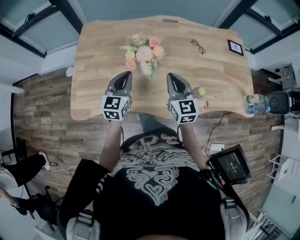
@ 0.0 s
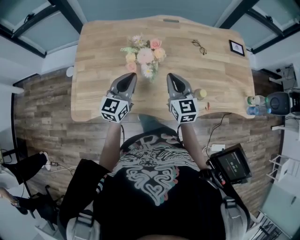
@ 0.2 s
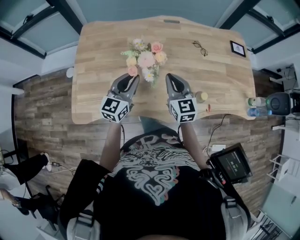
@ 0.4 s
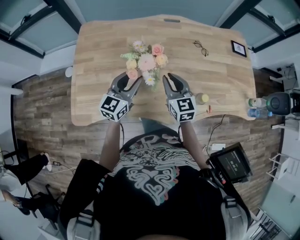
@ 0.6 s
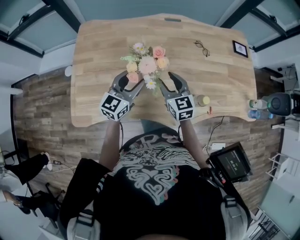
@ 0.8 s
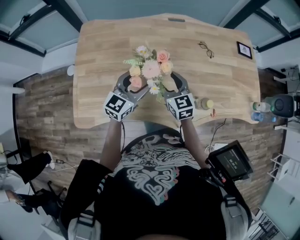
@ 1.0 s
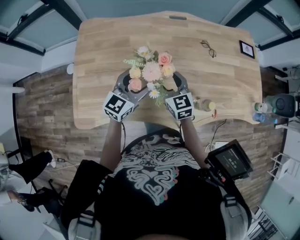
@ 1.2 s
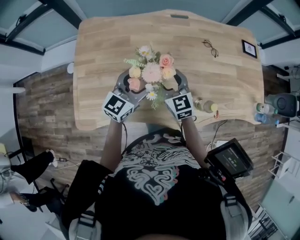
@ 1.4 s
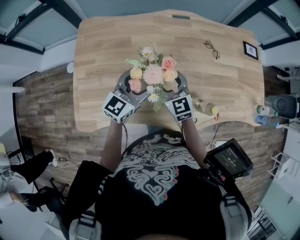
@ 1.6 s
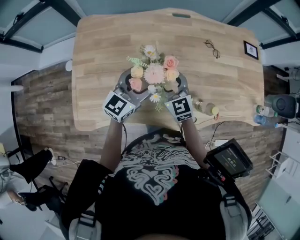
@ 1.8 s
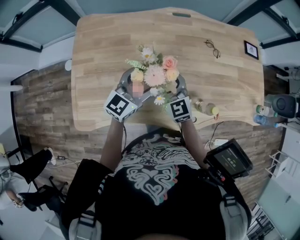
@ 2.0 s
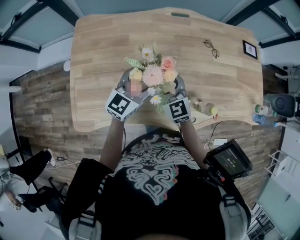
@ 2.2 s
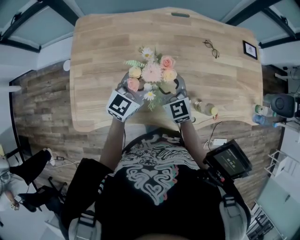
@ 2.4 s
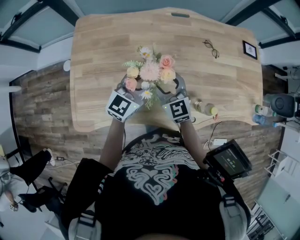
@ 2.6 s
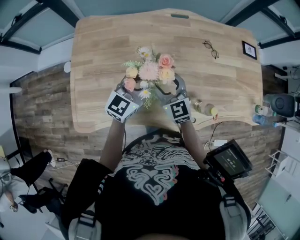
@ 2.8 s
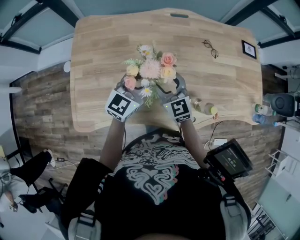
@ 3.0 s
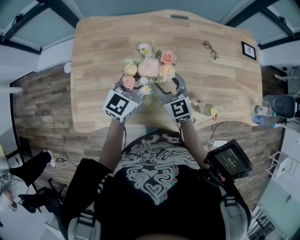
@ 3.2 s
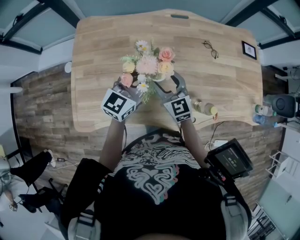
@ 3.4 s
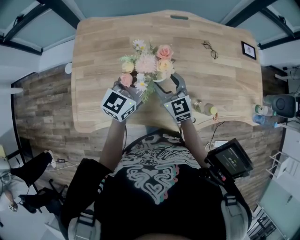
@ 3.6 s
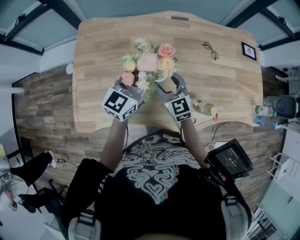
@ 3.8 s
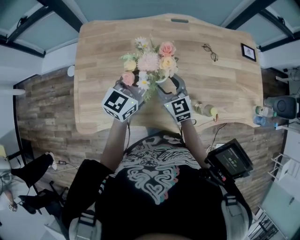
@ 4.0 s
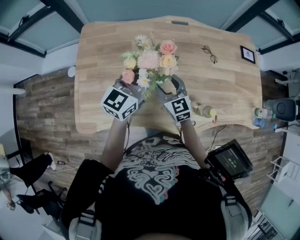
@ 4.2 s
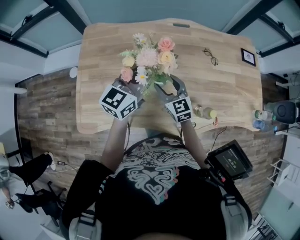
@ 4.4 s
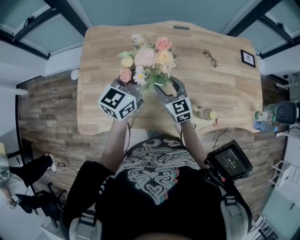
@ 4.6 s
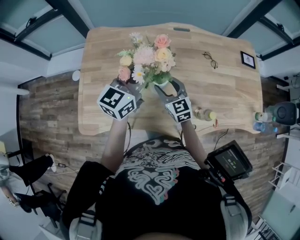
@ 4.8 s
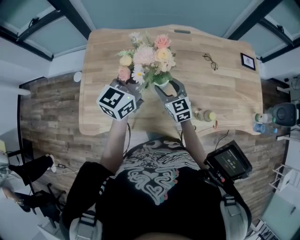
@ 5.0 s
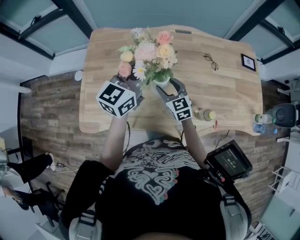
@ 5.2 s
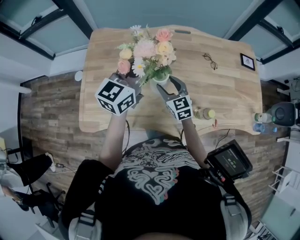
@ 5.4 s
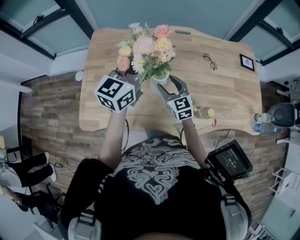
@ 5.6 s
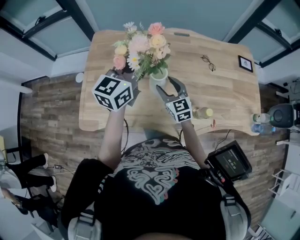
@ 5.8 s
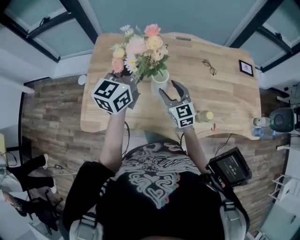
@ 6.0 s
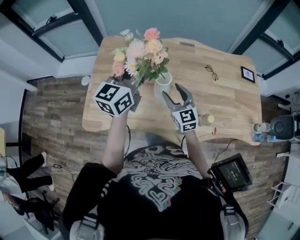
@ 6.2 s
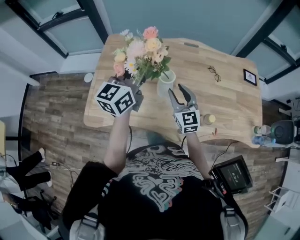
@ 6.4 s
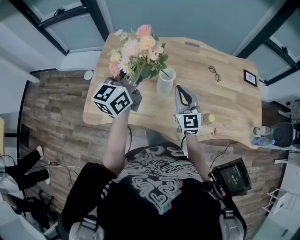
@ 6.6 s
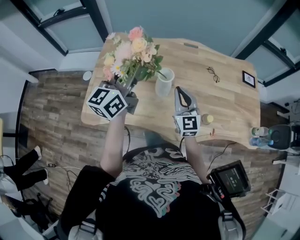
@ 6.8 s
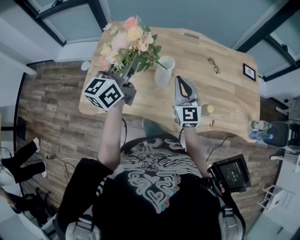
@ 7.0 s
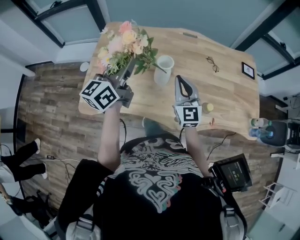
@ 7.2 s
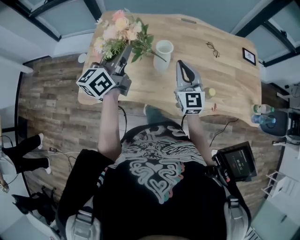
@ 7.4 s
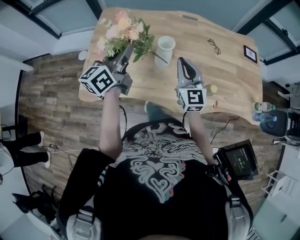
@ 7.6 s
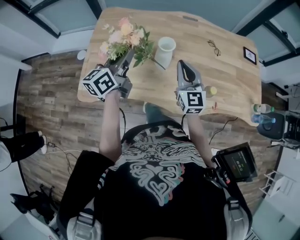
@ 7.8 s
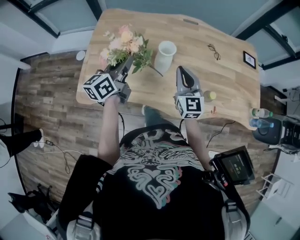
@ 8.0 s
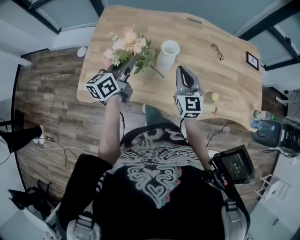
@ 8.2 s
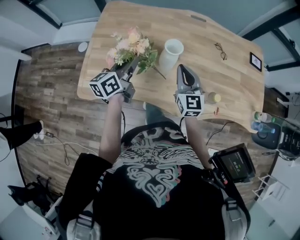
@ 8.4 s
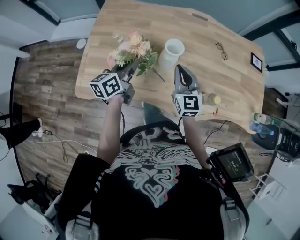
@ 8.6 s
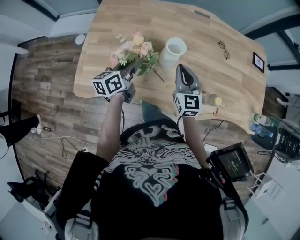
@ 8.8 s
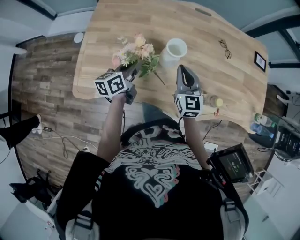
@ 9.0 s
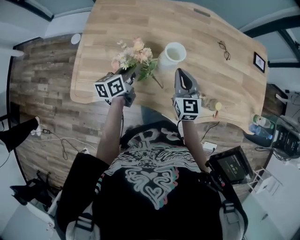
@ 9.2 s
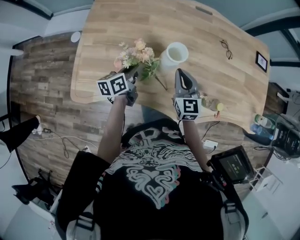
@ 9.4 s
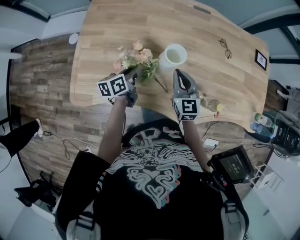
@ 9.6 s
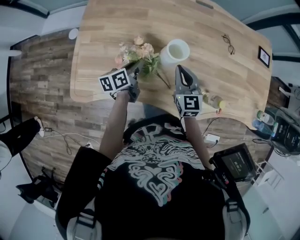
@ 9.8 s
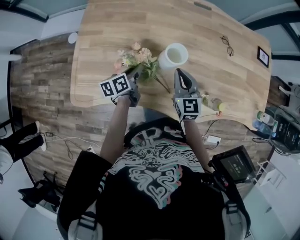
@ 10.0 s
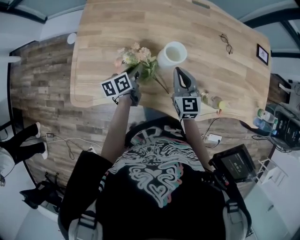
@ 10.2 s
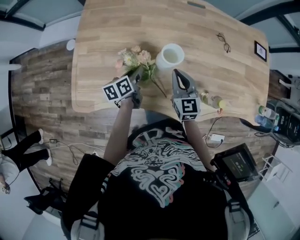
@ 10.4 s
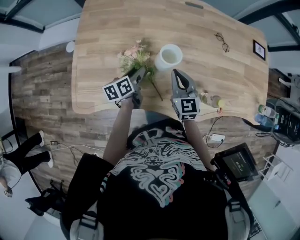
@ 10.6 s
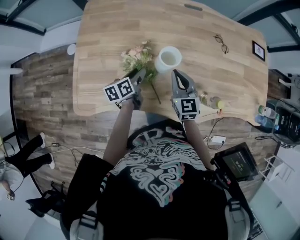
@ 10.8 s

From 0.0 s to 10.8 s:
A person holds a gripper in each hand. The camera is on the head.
From 0.0 s to 1.6 s: The right gripper goes some 15 cm forward, to the left and downward, and opens up. The left gripper is displaced forward by approximately 10 cm, swivels some 30 degrees, and opens up.
From 1.6 s to 3.0 s: The left gripper closes.
From 3.0 s to 4.6 s: The left gripper goes about 10 cm upward.
From 4.6 s to 6.2 s: The left gripper heads upward, covering about 10 cm. The right gripper moves backward and upward, about 10 cm.
From 6.2 s to 7.8 s: The right gripper goes roughly 5 cm backward, and closes; the left gripper goes approximately 15 cm downward, to the left and backward, and changes its angle by some 20 degrees.
From 7.8 s to 9.2 s: The left gripper heads downward, covering some 20 cm, and rotates approximately 30 degrees. Meanwhile the right gripper goes approximately 15 cm downward and forward.
From 9.2 s to 10.8 s: The left gripper moves downward, approximately 5 cm, and opens up.

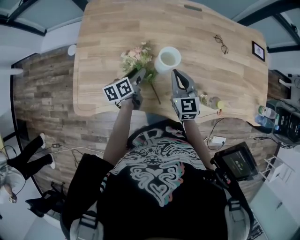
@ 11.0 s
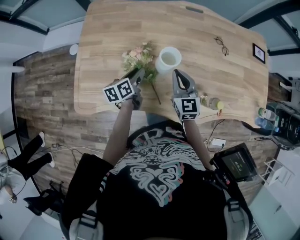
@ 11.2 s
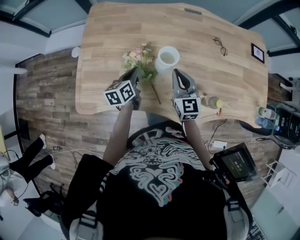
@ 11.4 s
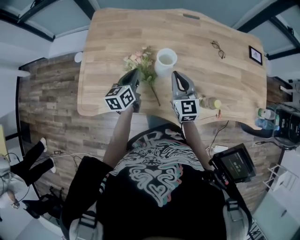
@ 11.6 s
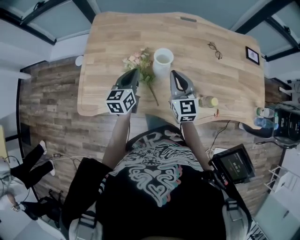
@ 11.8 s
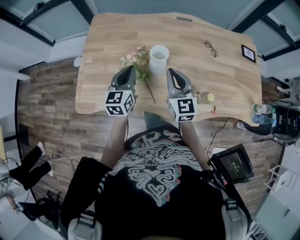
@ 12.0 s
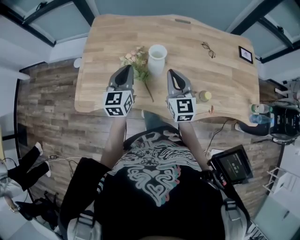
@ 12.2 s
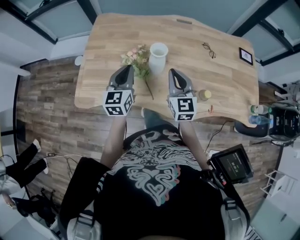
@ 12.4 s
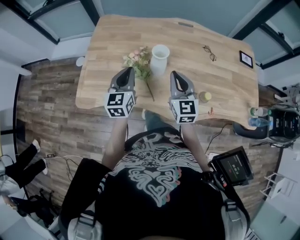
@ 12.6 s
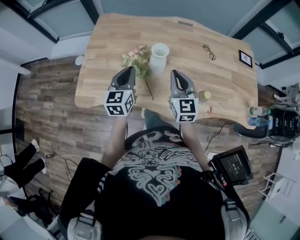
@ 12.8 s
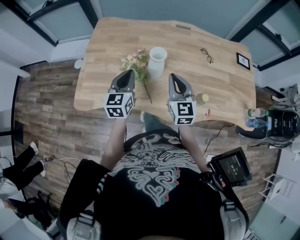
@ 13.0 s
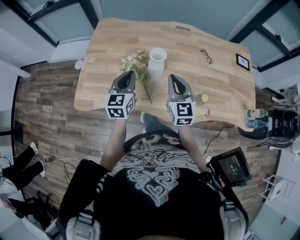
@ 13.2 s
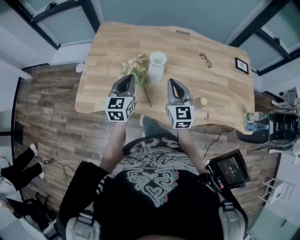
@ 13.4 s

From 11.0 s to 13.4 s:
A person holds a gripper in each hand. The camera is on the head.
From 11.0 s to 12.2 s: The two grippers go some 15 cm upward and backward. The left gripper twists some 50 degrees clockwise, seen from behind, and closes.
From 12.2 s to 13.4 s: The grippers make only small movements.

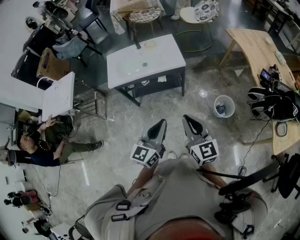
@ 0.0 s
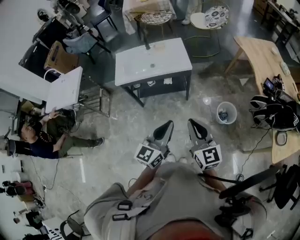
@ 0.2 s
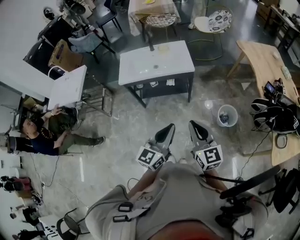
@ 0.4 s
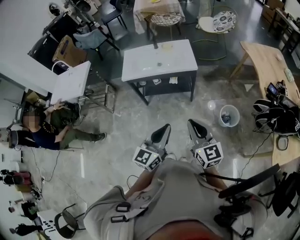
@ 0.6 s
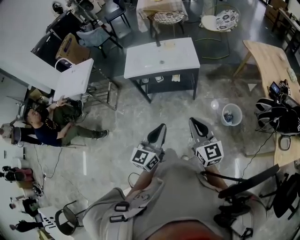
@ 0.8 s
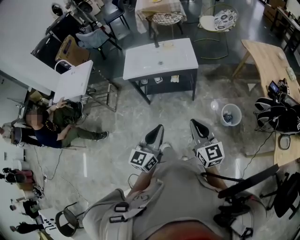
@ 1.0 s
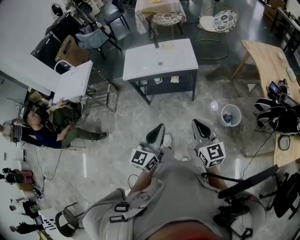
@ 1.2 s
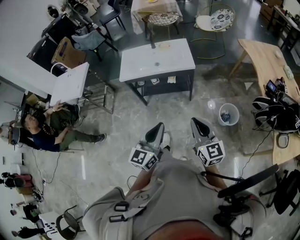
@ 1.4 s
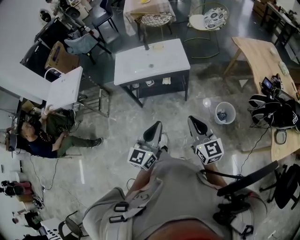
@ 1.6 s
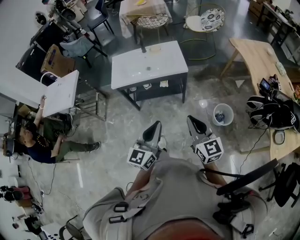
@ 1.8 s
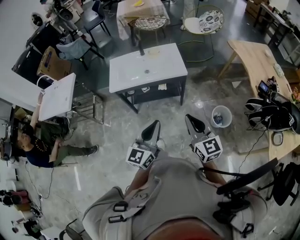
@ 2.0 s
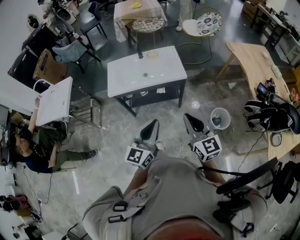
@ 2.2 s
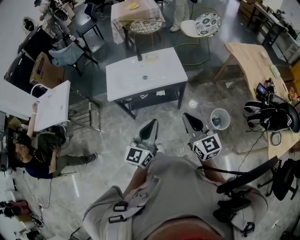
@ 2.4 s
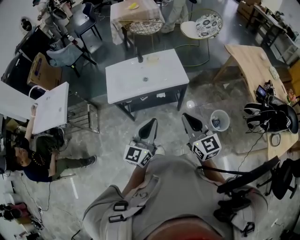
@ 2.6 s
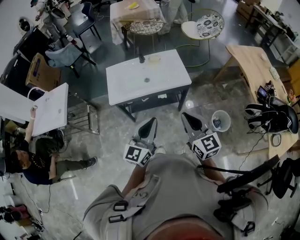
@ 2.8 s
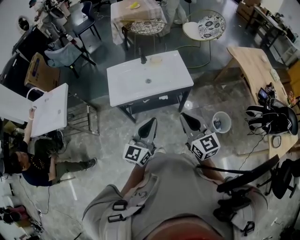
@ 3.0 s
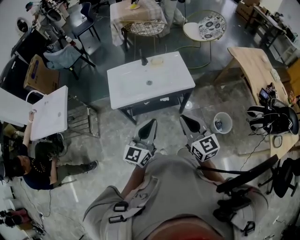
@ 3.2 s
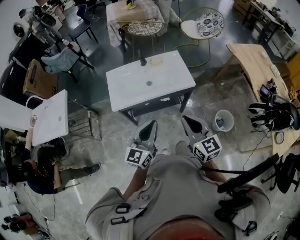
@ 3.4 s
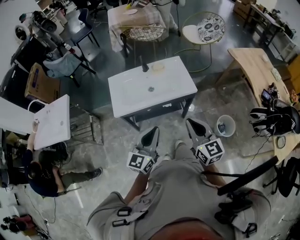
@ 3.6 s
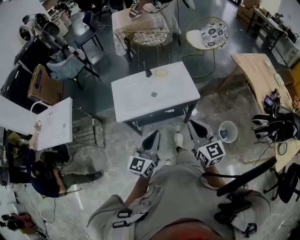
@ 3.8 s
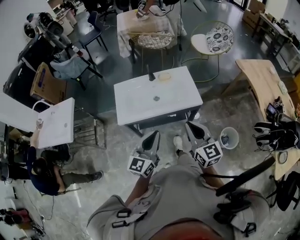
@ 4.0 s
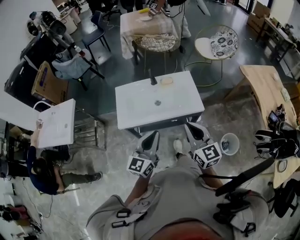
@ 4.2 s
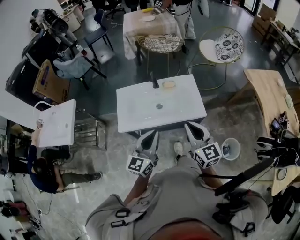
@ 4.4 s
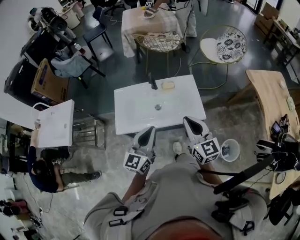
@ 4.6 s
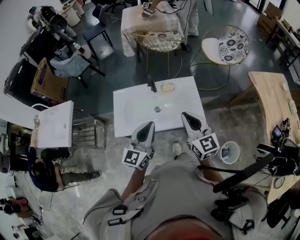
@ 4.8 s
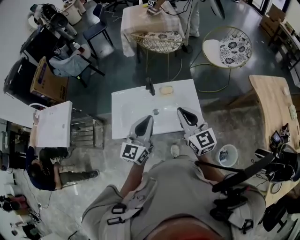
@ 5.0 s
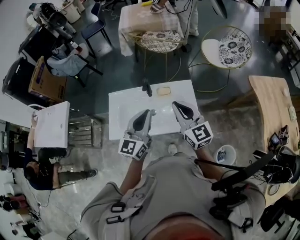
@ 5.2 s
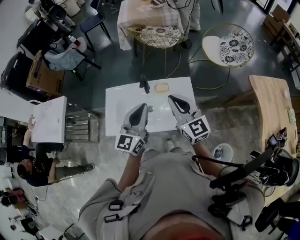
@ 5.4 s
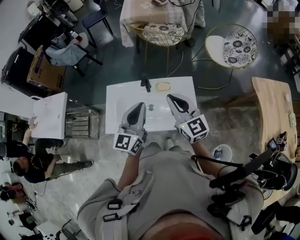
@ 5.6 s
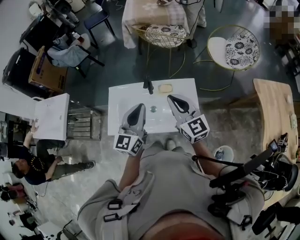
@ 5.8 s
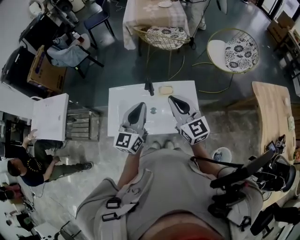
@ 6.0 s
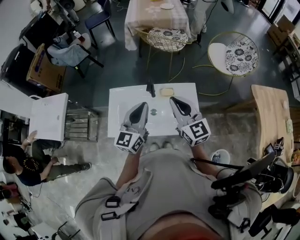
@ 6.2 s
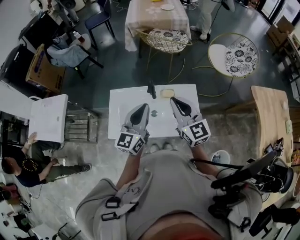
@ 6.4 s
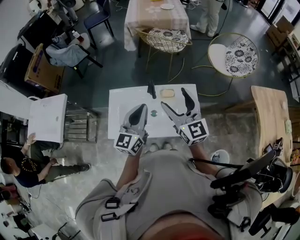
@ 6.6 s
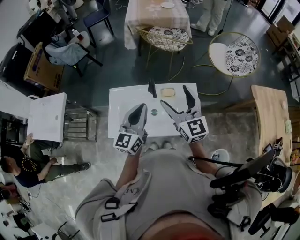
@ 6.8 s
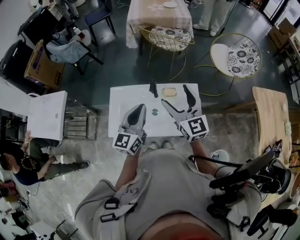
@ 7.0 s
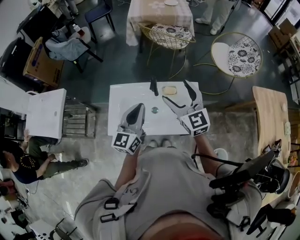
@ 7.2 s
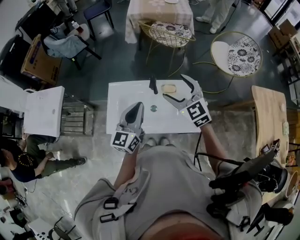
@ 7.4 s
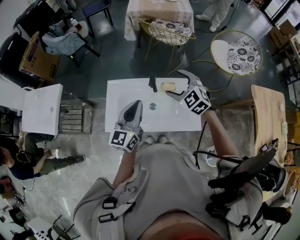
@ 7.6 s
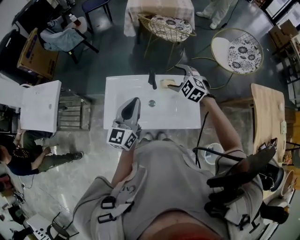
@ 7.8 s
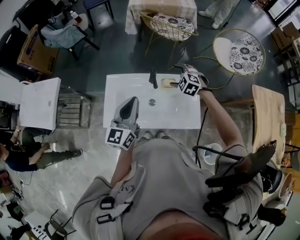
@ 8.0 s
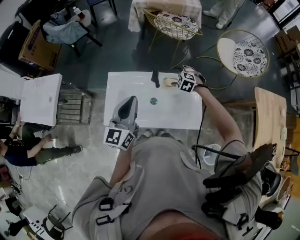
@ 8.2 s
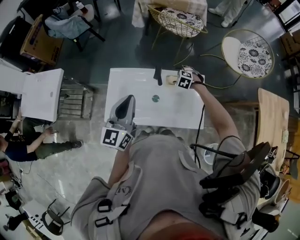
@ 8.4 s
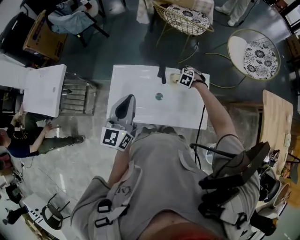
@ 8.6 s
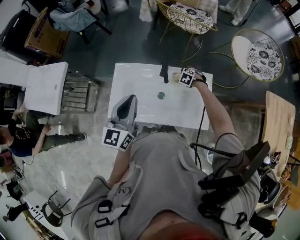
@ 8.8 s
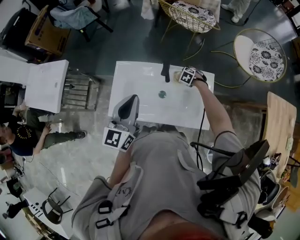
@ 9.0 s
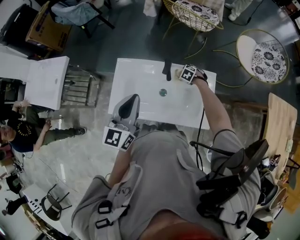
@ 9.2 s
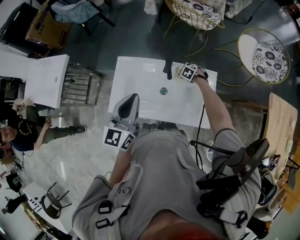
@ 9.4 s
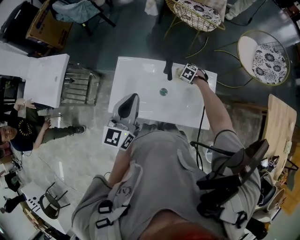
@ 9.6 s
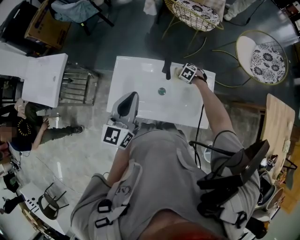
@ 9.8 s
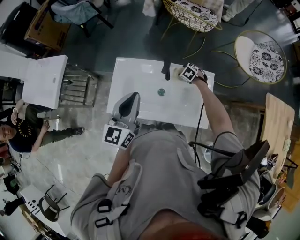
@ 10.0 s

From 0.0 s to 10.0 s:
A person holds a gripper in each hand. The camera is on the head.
From 0.0 s to 1.4 s: Both grippers move backward, approximately 10 cm.
From 1.4 s to 2.8 s: Both grippers move forward and to the left, approximately 25 cm.
From 2.8 s to 4.2 s: Both grippers move forward, approximately 15 cm.
From 4.2 s to 5.8 s: Both grippers move forward, roughly 30 cm.
From 5.8 s to 7.2 s: The right gripper shifts about 5 cm forward, and opens its fingers. The left gripper is displaced to the left by about 5 cm.
From 7.2 s to 8.6 s: The right gripper travels downward by some 40 cm, and tilts its fingers approximately 60 degrees downward, while the left gripper moves to the left, some 5 cm.
